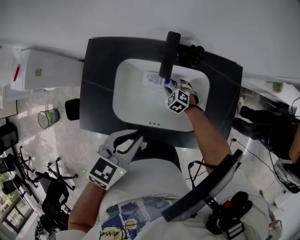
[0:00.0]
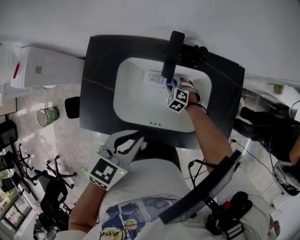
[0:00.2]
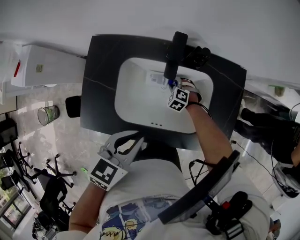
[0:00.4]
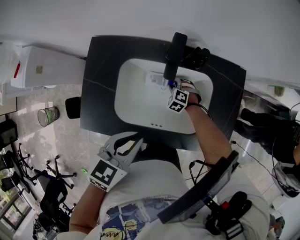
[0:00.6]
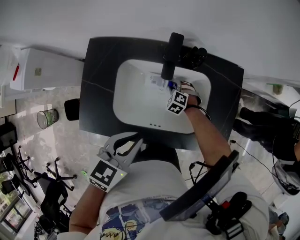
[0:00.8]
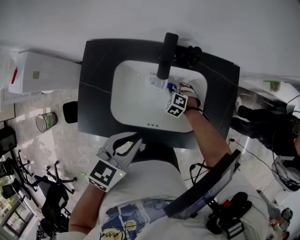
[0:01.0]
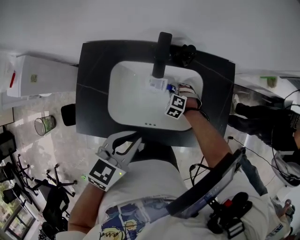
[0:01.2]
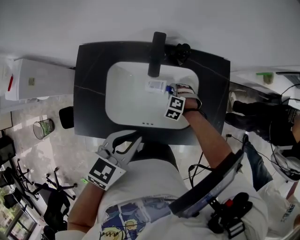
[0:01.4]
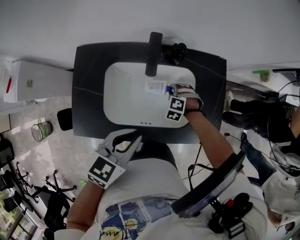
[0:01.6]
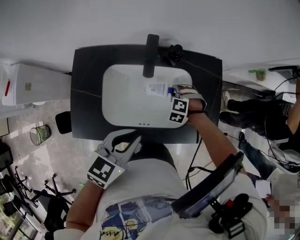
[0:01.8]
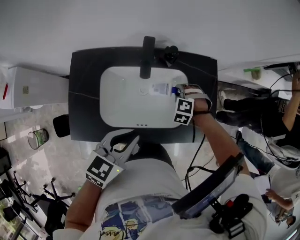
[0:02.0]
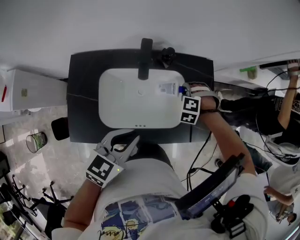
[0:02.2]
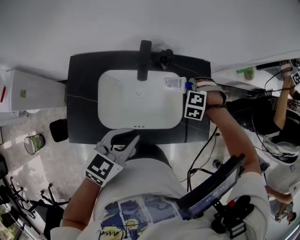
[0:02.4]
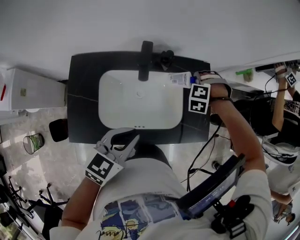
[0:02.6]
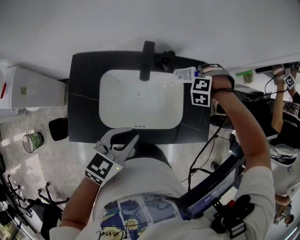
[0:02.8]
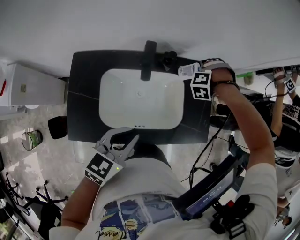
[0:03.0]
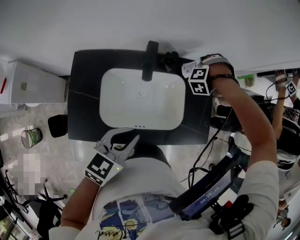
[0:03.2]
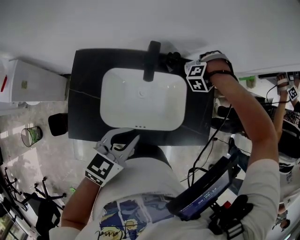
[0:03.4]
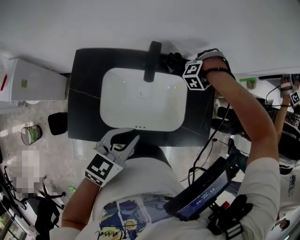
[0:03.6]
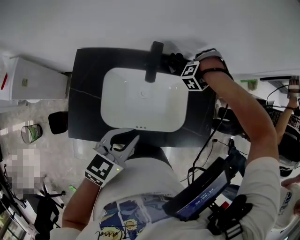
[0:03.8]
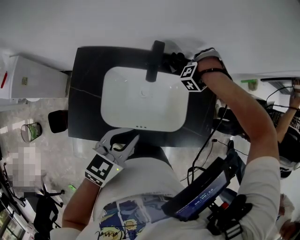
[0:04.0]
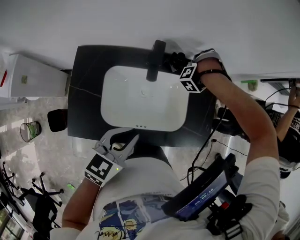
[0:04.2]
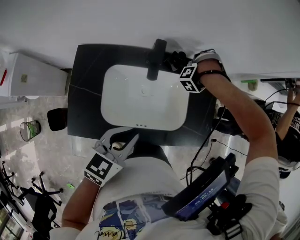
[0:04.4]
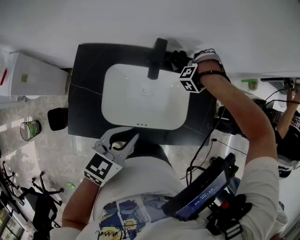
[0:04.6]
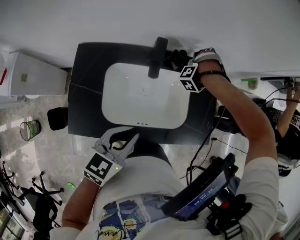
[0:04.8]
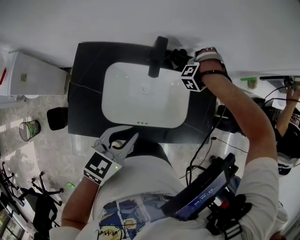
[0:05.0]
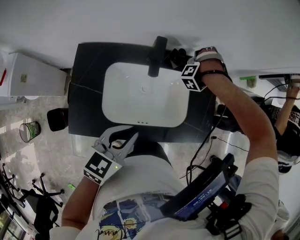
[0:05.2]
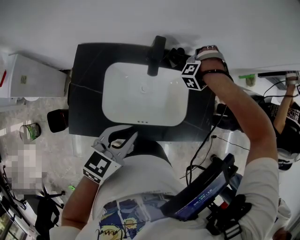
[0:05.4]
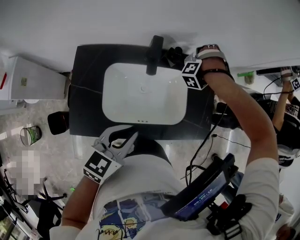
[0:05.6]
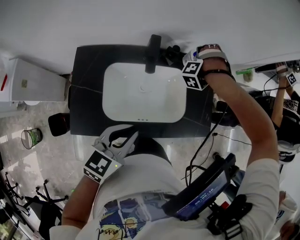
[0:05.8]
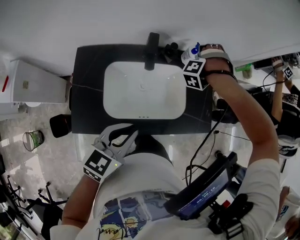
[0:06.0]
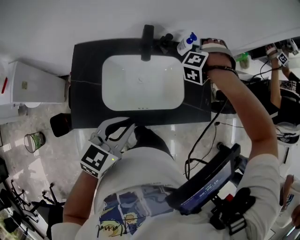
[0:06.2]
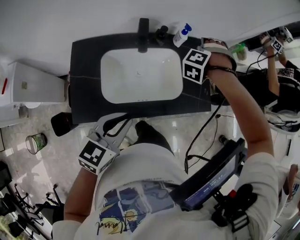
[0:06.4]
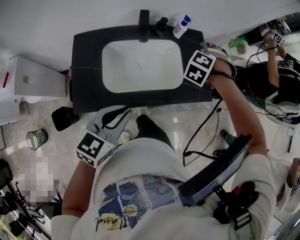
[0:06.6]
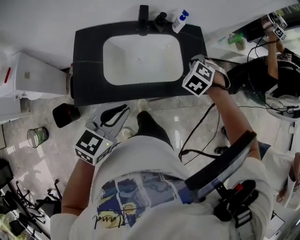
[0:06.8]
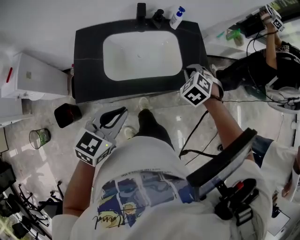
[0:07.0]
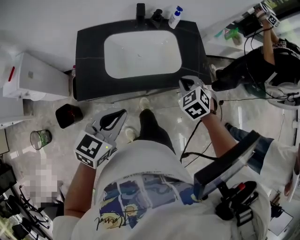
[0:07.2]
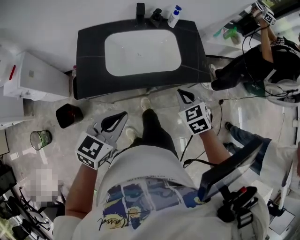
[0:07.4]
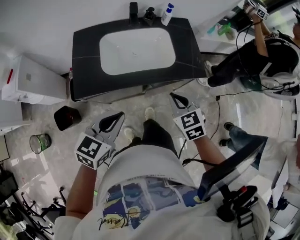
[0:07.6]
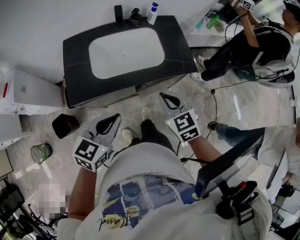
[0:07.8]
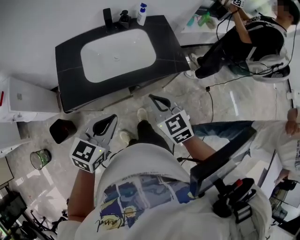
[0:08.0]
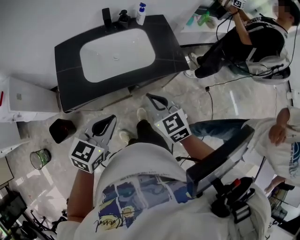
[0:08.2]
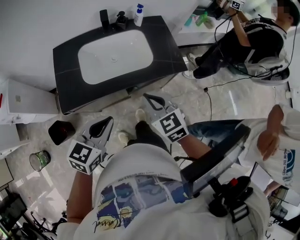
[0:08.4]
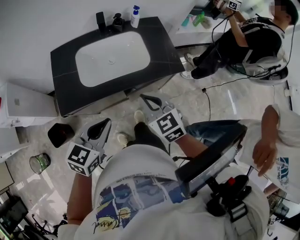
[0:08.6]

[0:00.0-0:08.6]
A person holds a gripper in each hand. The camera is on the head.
0.0 to 1.4 s: The right gripper moves to the right, some 5 cm, and swivels some 30 degrees.
1.4 to 2.8 s: The right gripper is displaced upward by approximately 20 cm, and changes its angle by roughly 30 degrees.
2.8 to 4.4 s: The right gripper heads to the left, covering approximately 5 cm, and turns by roughly 30 degrees.
4.4 to 5.8 s: The right gripper heads upward, covering about 5 cm, and opens its fingers.
5.8 to 7.2 s: The left gripper moves about 20 cm, while the right gripper shifts by about 40 cm, rotates around the line of its fingers by approximately 70 degrees, clockwise from behind, and closes its fingers.
7.2 to 8.6 s: The right gripper moves backward and upward, approximately 15 cm, and changes its angle by about 30 degrees.

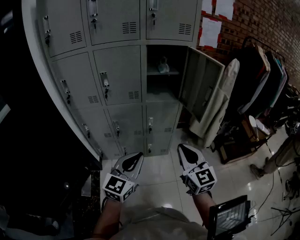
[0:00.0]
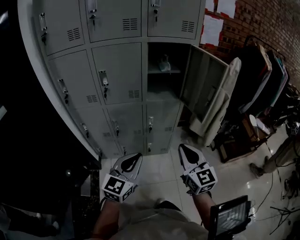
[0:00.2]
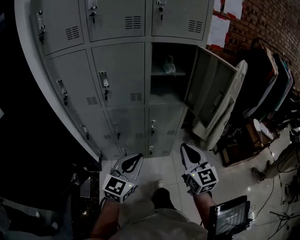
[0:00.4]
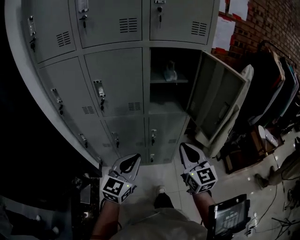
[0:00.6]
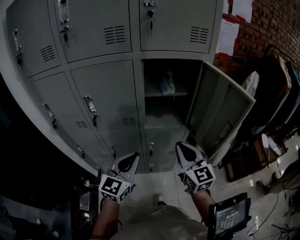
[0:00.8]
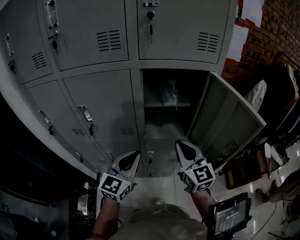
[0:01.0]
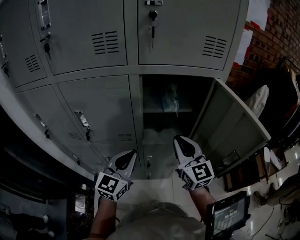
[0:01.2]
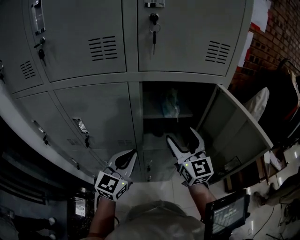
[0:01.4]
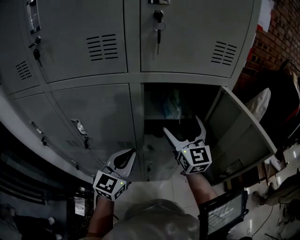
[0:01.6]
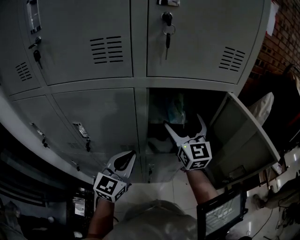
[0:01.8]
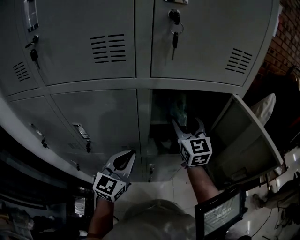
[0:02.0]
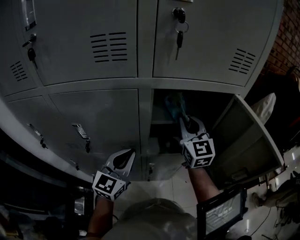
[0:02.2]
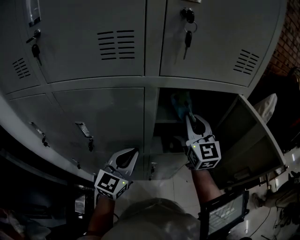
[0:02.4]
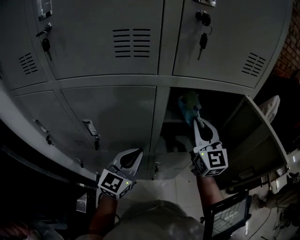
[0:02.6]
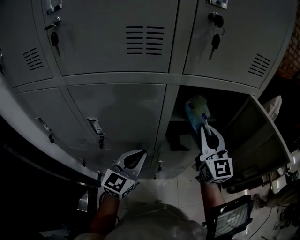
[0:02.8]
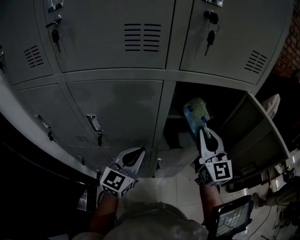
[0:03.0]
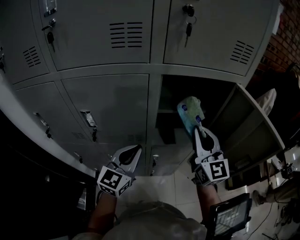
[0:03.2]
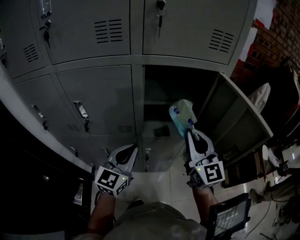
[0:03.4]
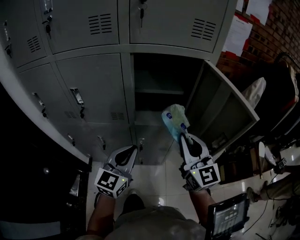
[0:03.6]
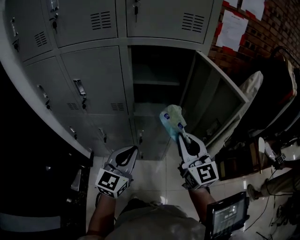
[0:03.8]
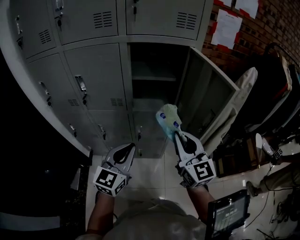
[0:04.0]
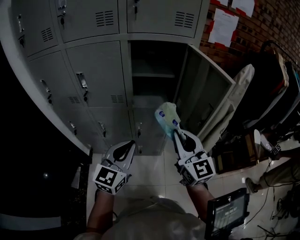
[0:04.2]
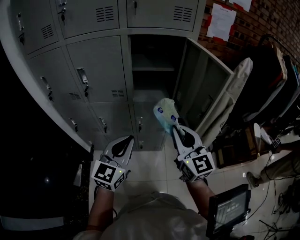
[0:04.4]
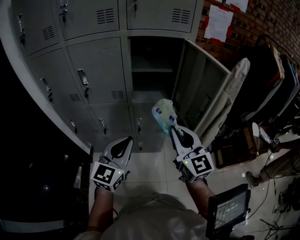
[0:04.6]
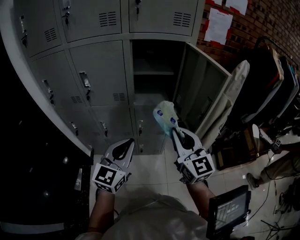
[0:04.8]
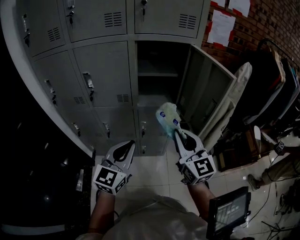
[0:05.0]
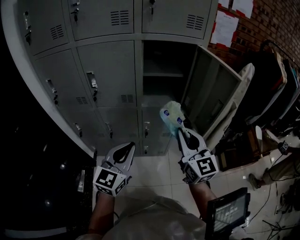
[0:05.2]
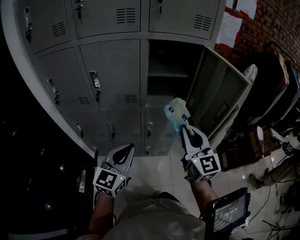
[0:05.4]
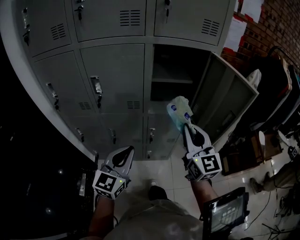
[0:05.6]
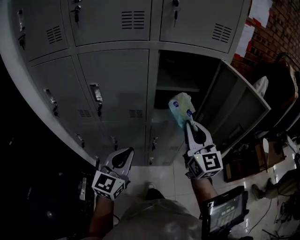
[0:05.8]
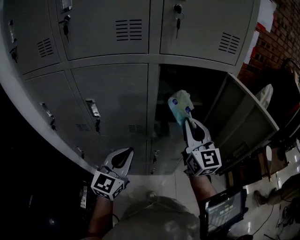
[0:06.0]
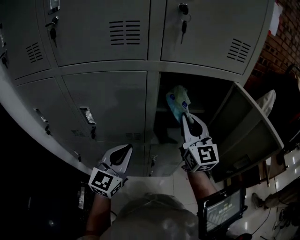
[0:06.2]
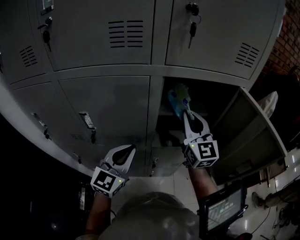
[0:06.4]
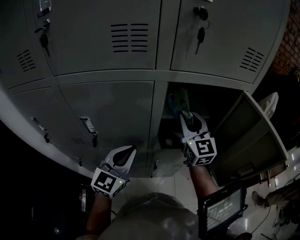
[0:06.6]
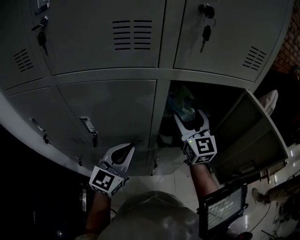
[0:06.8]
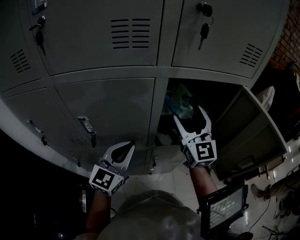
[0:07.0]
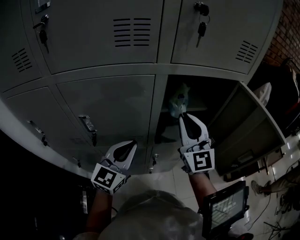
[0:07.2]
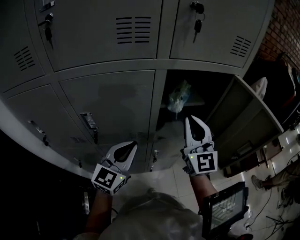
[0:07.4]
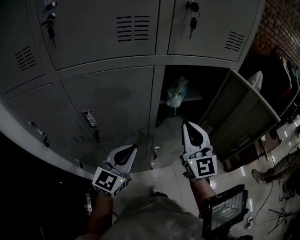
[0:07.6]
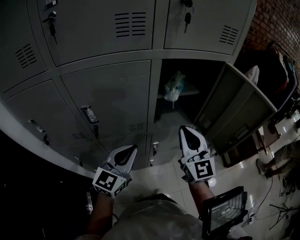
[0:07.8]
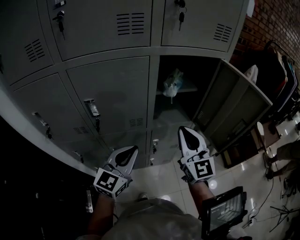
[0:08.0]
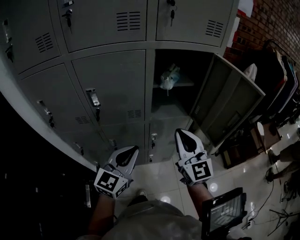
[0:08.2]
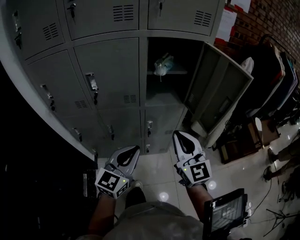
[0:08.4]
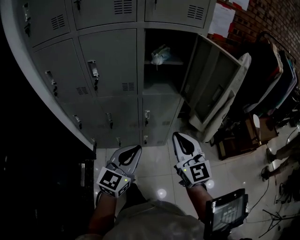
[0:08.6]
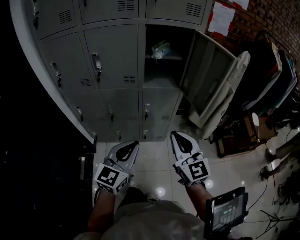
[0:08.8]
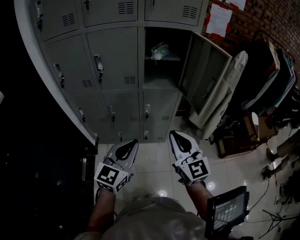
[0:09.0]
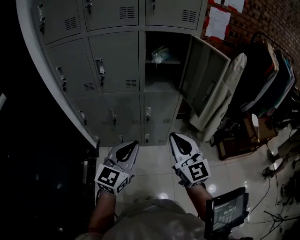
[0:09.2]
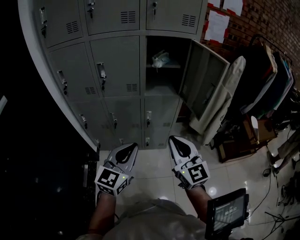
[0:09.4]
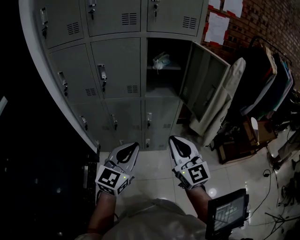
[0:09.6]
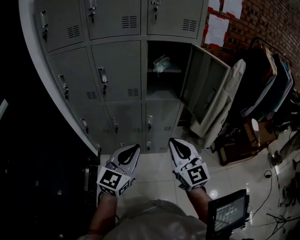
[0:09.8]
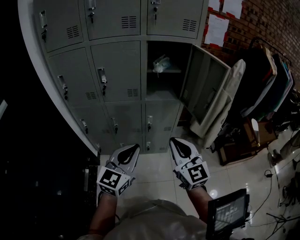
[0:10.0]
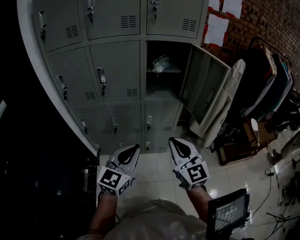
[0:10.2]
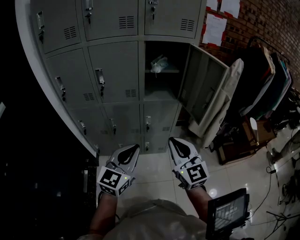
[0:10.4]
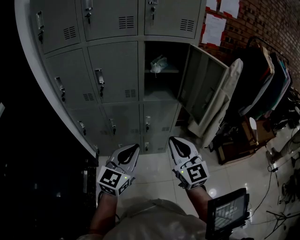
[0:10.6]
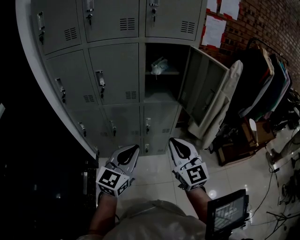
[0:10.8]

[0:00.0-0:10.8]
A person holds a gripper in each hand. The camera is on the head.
0.0 to 1.6 s: Both grippers move forward, approximately 40 cm. The right gripper opens.
1.6 to 3.0 s: The right gripper closes its fingers.
3.0 to 4.6 s: The right gripper heads backward, covering about 25 cm; the left gripper heads backward and to the right, covering some 30 cm.
4.6 to 6.2 s: The right gripper shifts some 30 cm forward; the left gripper travels forward and to the left by about 25 cm.
6.2 to 7.8 s: The right gripper moves backward, about 10 cm, and opens and closes again.
7.8 to 9.2 s: The grippers both shift backward by about 30 cm.
9.2 to 10.8 s: The grippers stay close to where they were, moving slightly.

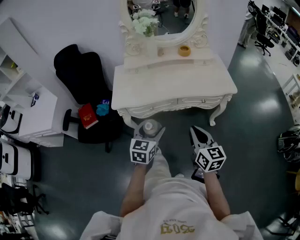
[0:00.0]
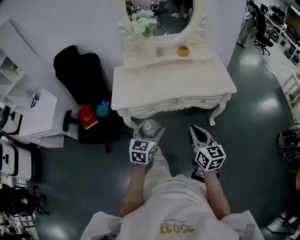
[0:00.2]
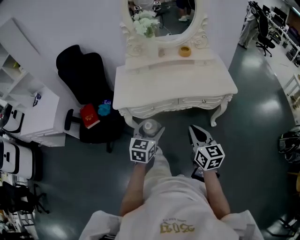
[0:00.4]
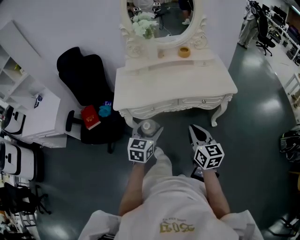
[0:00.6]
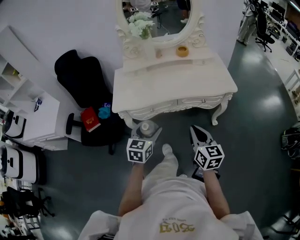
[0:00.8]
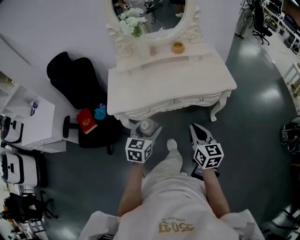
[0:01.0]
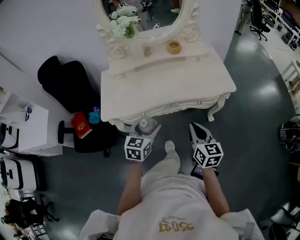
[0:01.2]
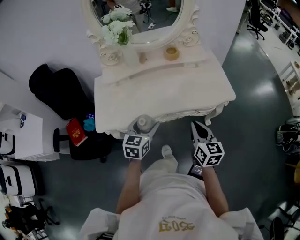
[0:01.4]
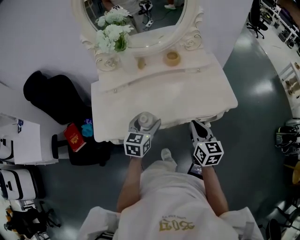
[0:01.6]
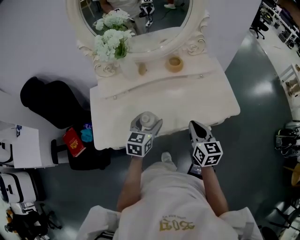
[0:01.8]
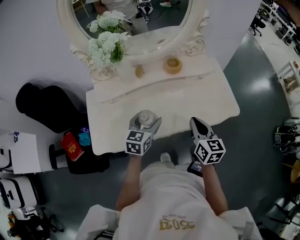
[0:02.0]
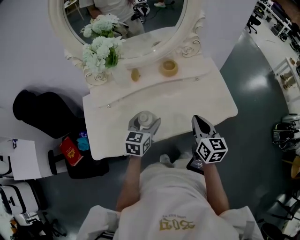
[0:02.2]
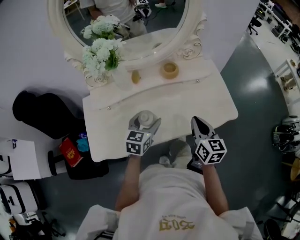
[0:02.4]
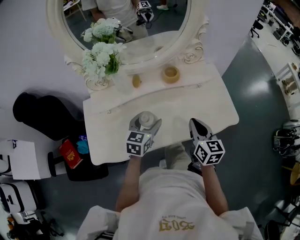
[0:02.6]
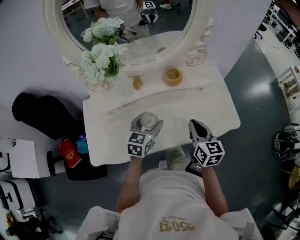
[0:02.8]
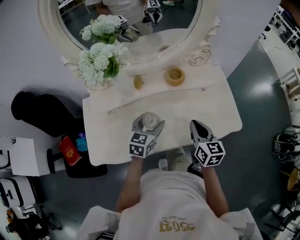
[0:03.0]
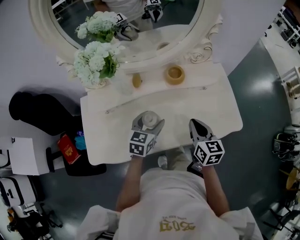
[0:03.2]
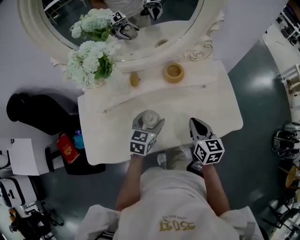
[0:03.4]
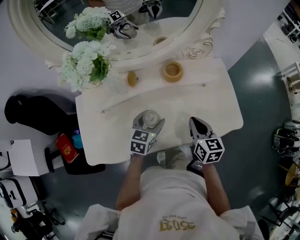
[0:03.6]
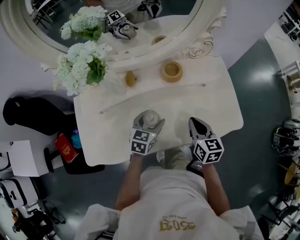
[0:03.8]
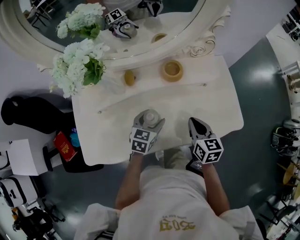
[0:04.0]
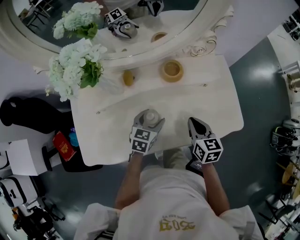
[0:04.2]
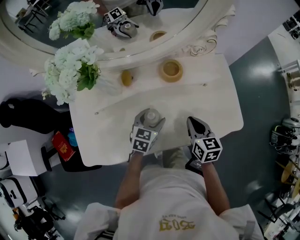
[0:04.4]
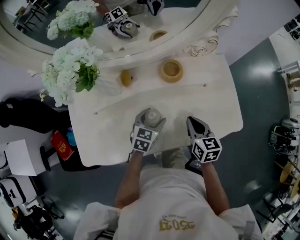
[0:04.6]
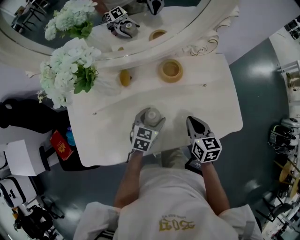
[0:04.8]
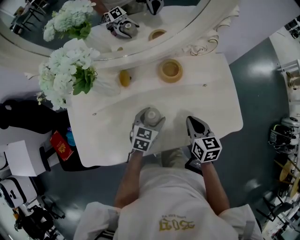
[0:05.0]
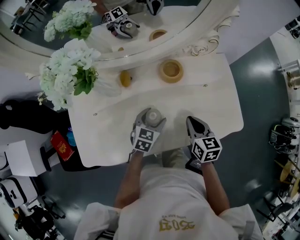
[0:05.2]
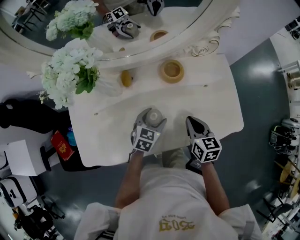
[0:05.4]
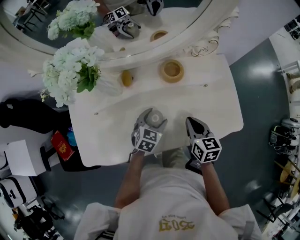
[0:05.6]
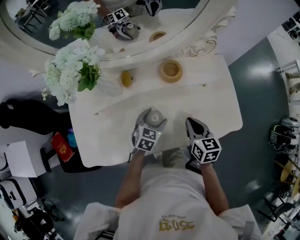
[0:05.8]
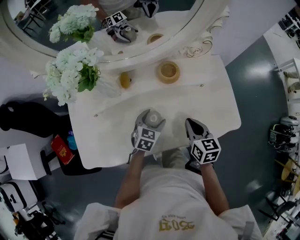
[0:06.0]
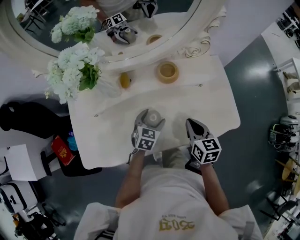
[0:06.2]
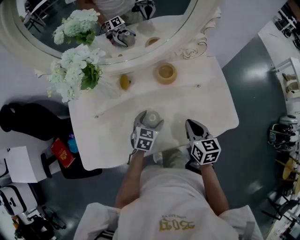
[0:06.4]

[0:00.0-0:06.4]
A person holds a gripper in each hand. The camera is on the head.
0.0 to 1.6 s: The grippers both shift forward by approximately 25 cm.
1.6 to 3.2 s: The two grippers go some 15 cm forward.
3.2 to 4.8 s: The grippers both shift downward by approximately 10 cm.
4.8 to 6.4 s: The grippers make only small movements.
